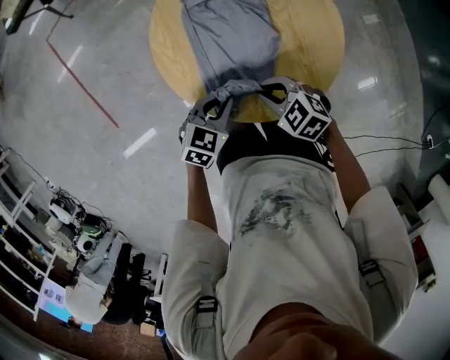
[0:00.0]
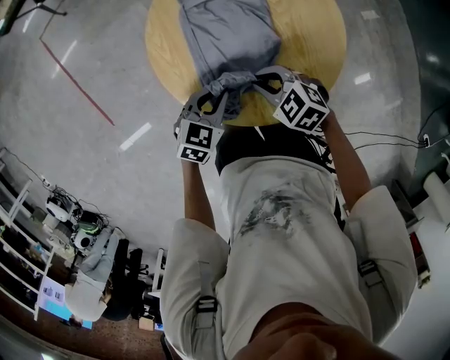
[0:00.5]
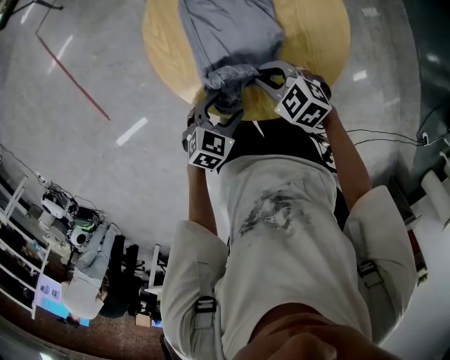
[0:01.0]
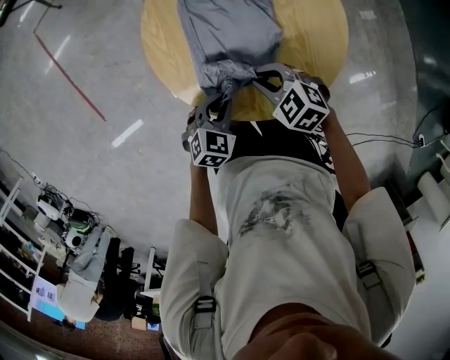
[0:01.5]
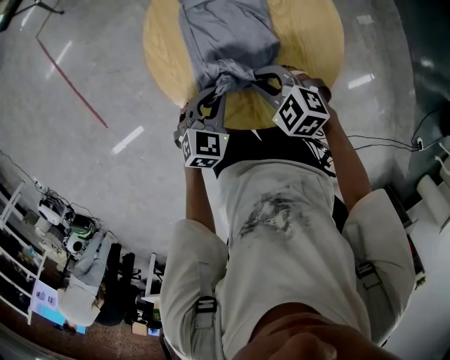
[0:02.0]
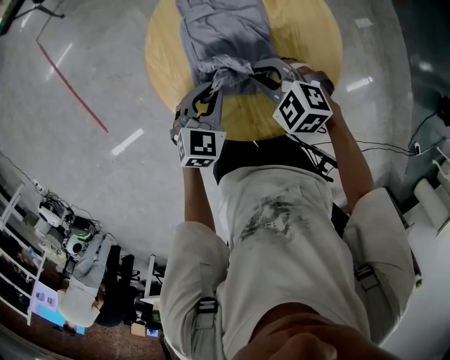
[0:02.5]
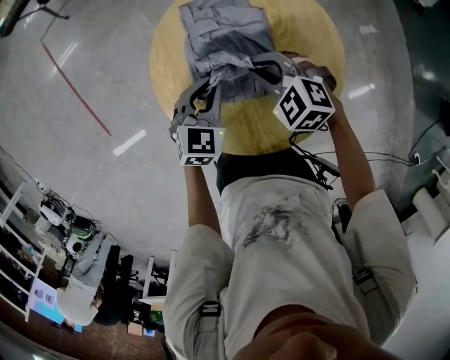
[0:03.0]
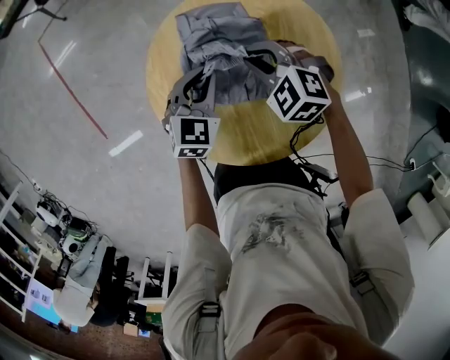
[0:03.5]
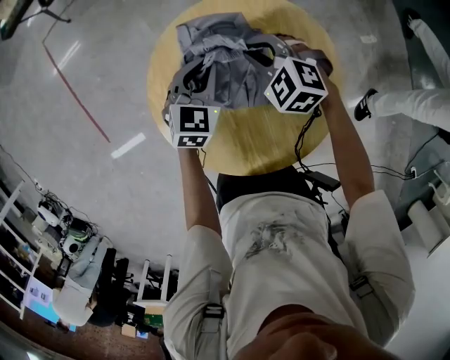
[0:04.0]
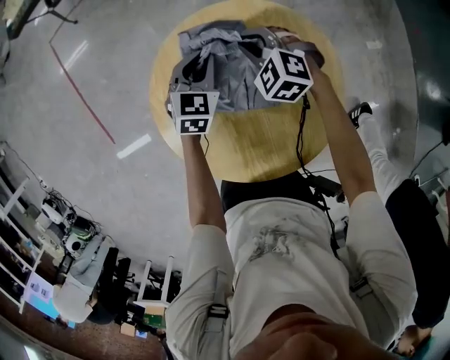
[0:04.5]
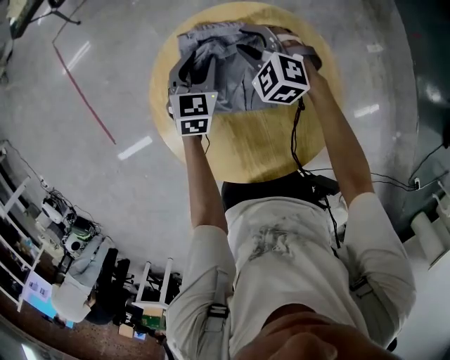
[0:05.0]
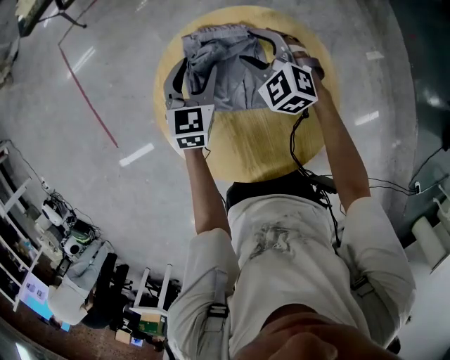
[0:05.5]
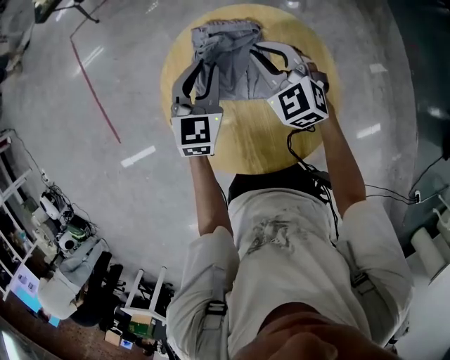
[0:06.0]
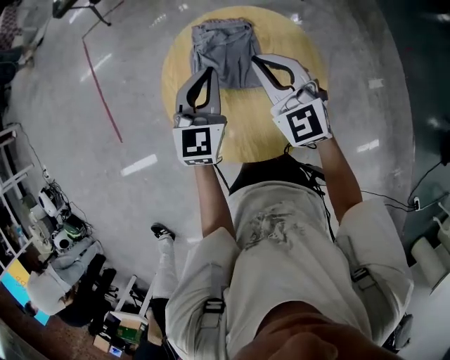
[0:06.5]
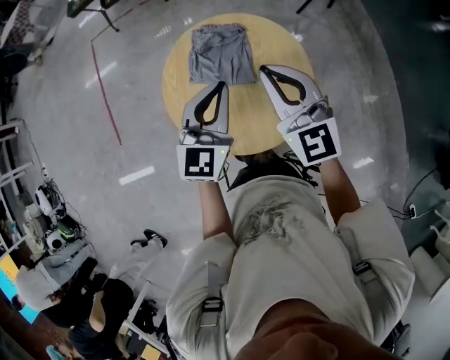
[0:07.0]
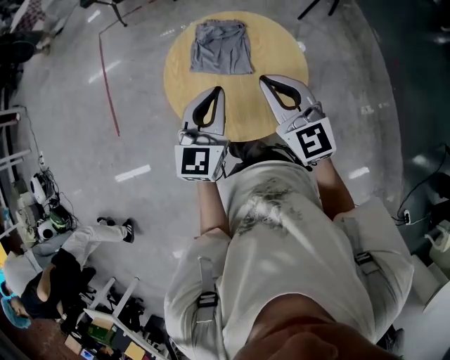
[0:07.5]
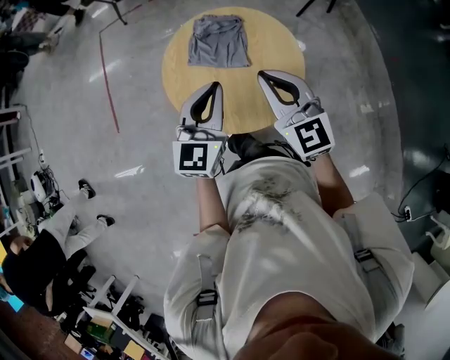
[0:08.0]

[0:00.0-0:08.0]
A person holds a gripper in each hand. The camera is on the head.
0:00.0 to 0:02.0: The left gripper opens, then closes again. The right gripper shifts by approximately 5 cm.
0:02.0 to 0:04.0: The grippers both shift forward by roughly 20 cm.
0:04.0 to 0:06.0: Both grippers travel together upward, approximately 10 cm. The left gripper opens, then closes once more. The right gripper rotates roughly 30 degrees, and opens, then closes again.
0:06.0 to 0:08.0: The grippers both shift backward and upward by about 35 cm. The left gripper closes its fingers. The right gripper changes its angle by roughly 30 degrees.

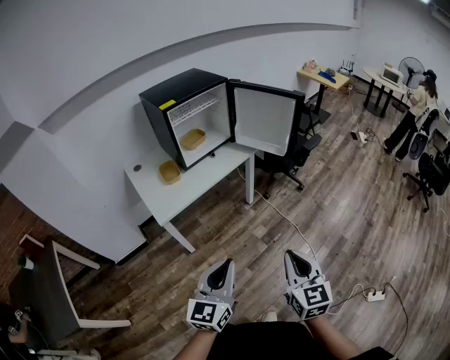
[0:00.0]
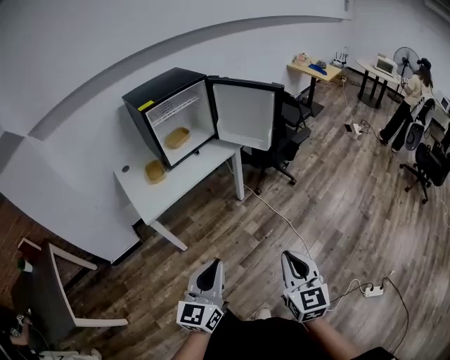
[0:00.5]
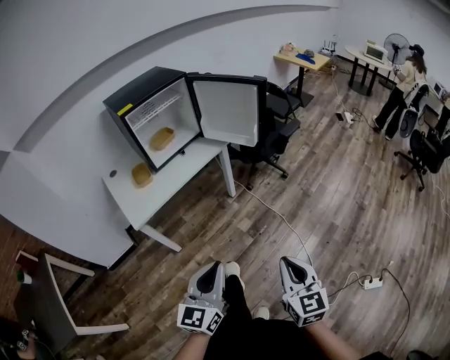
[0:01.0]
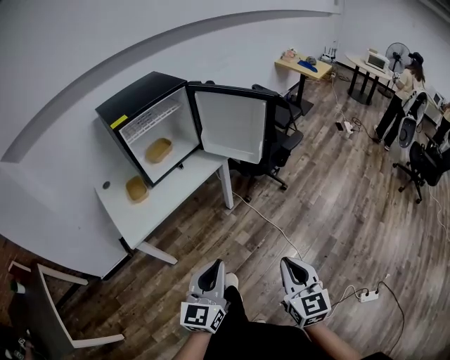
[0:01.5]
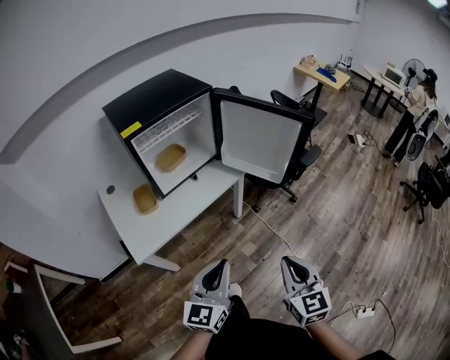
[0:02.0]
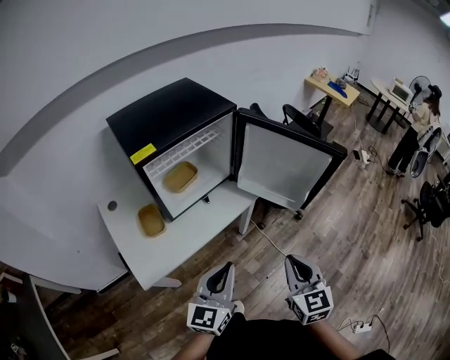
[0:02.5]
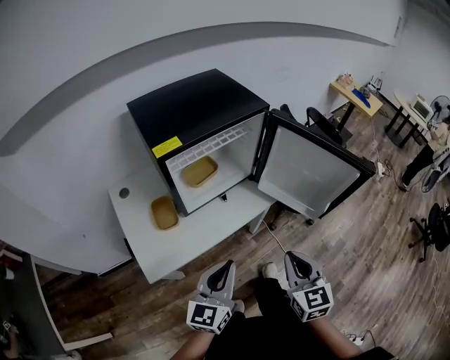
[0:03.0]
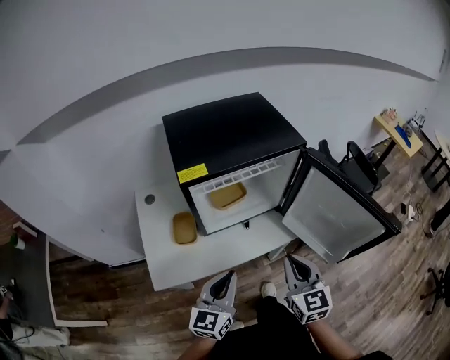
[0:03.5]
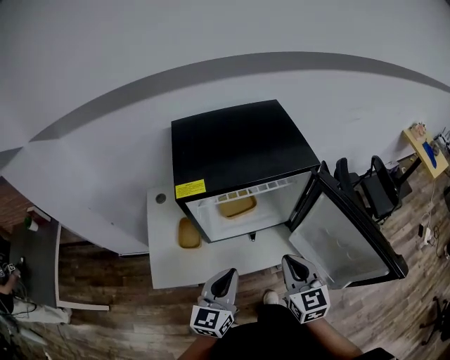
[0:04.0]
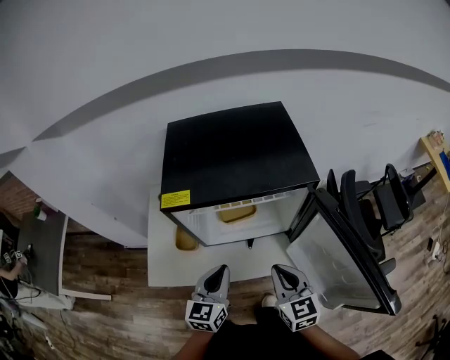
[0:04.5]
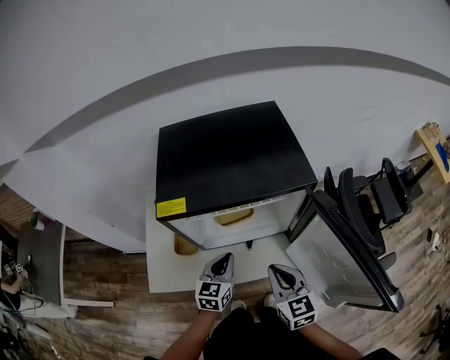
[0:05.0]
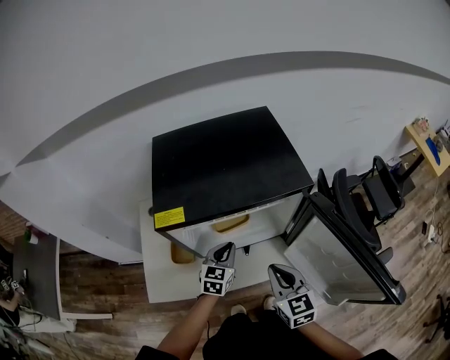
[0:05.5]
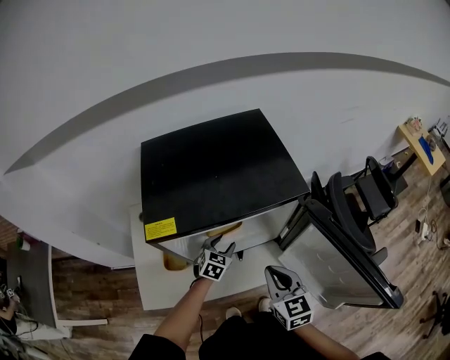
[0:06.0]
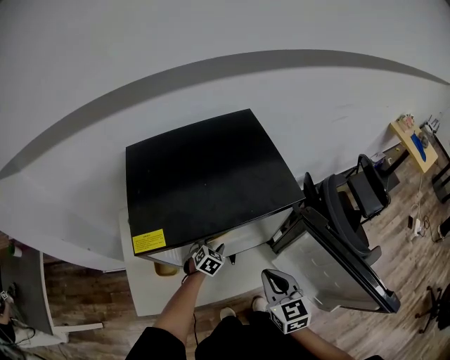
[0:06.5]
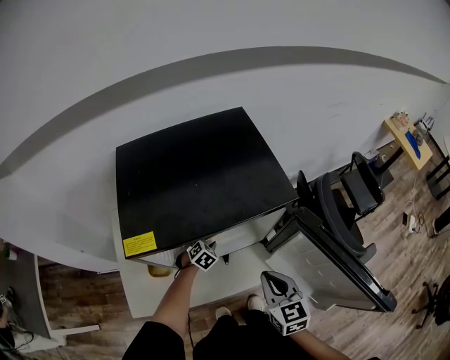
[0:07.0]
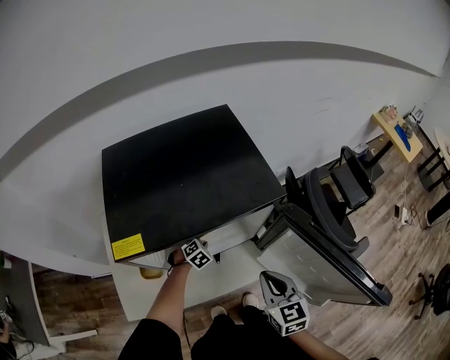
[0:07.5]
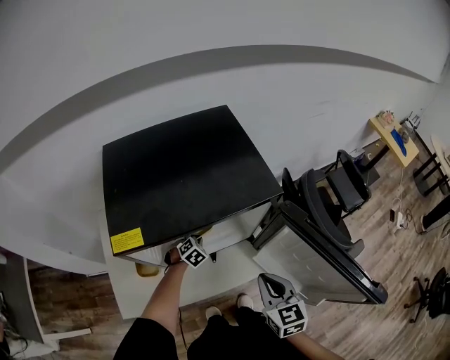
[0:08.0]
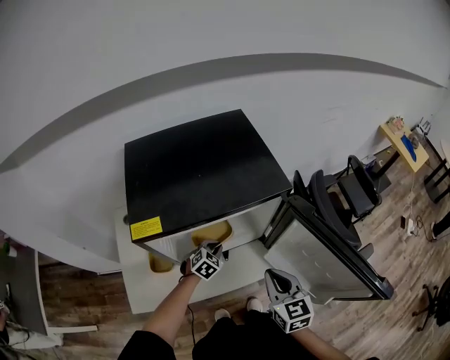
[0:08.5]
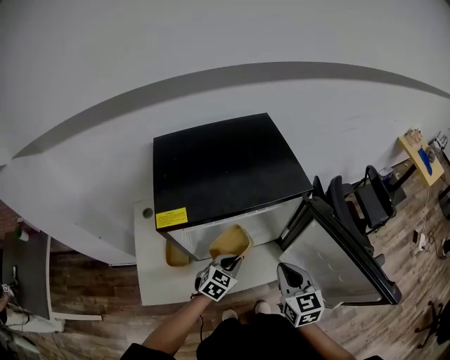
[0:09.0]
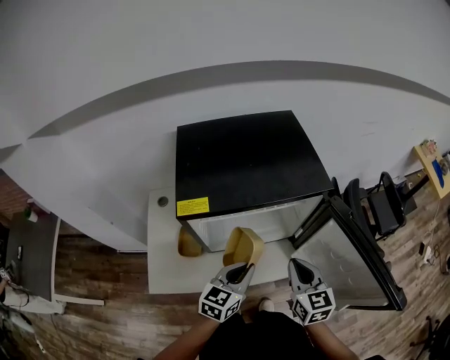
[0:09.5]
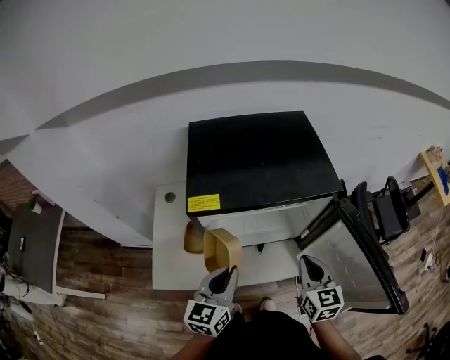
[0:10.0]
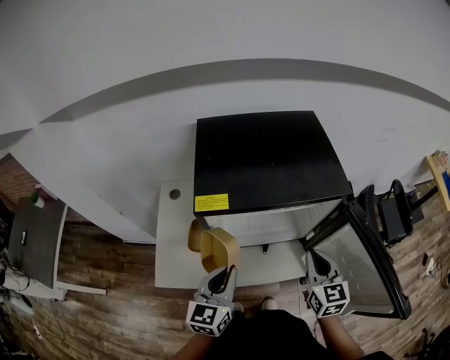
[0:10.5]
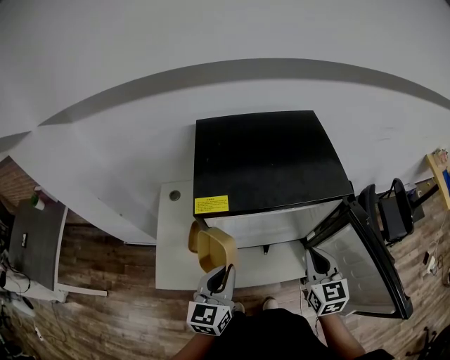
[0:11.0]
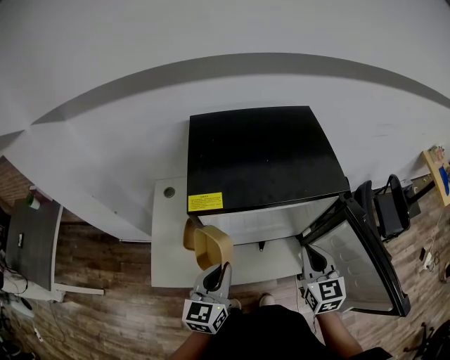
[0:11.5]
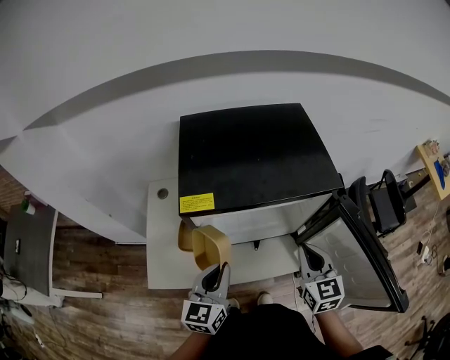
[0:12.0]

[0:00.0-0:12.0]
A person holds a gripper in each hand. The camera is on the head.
0:00.0 to 0:02.0: Both grippers move forward, about 25 cm.
0:02.0 to 0:04.0: The right gripper shifts by roughly 40 cm, and changes its angle by roughly 30 degrees. Meanwhile the left gripper moves some 35 cm, and turns by approximately 30 degrees.
0:04.0 to 0:06.0: The left gripper shifts some 30 cm forward and downward, tilts its fingers approximately 30 degrees downward, and opens up. Meanwhile the right gripper is displaced forward by roughly 10 cm.
0:06.0 to 0:08.0: The left gripper travels downward by some 10 cm, swivels roughly 30 degrees, and closes its fingers; the right gripper shifts by approximately 5 cm.
0:08.0 to 0:10.0: The right gripper ends up about 5 cm from where it was, while the left gripper heads upward and backward, covering approximately 40 cm, and tips its fingers upward by about 50 degrees.
0:10.0 to 0:12.0: The grippers make only small movements.

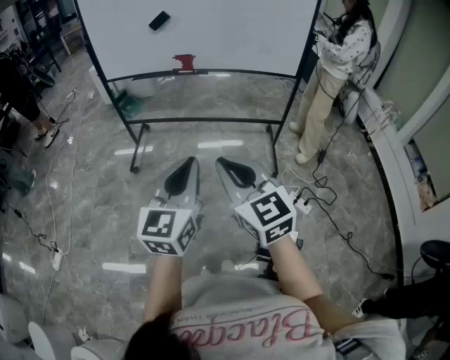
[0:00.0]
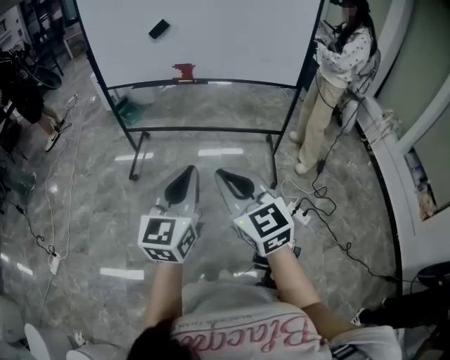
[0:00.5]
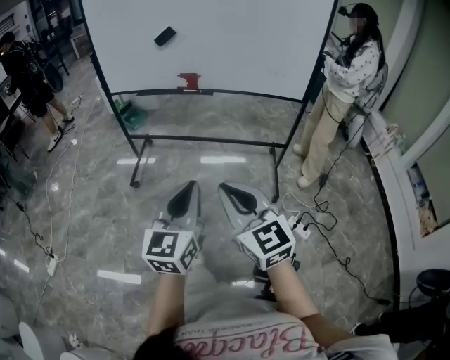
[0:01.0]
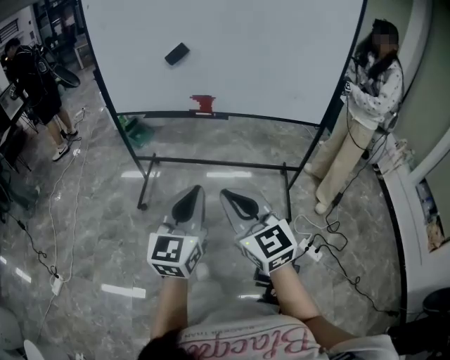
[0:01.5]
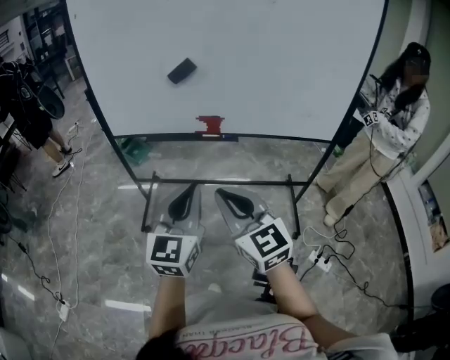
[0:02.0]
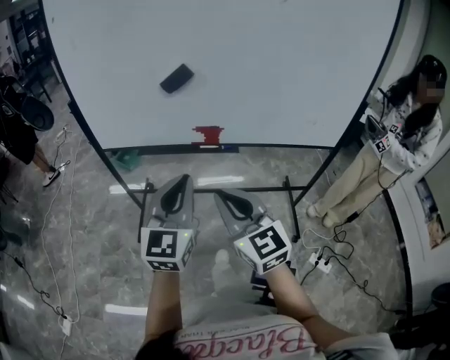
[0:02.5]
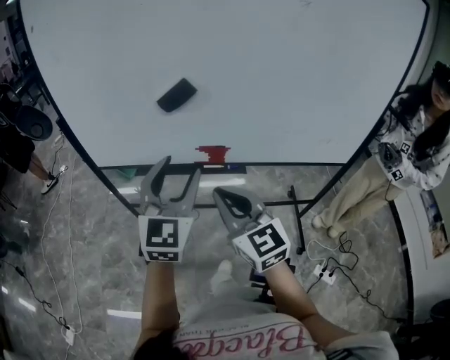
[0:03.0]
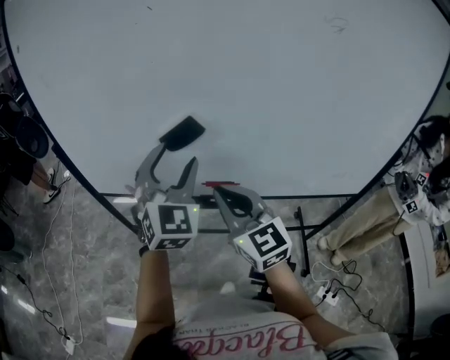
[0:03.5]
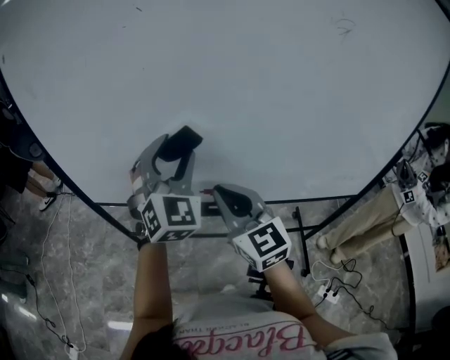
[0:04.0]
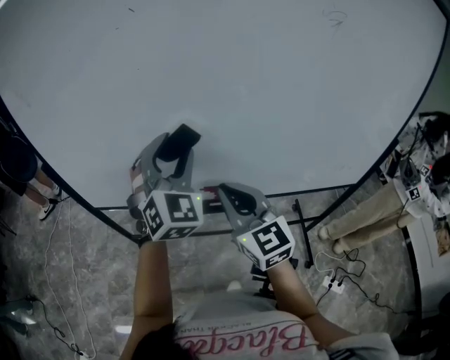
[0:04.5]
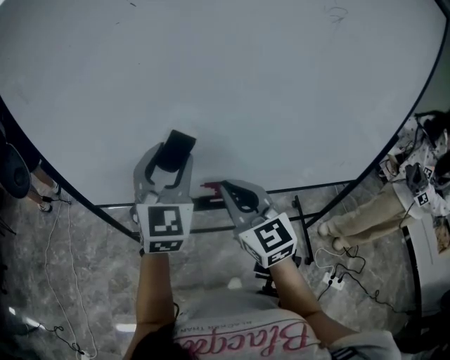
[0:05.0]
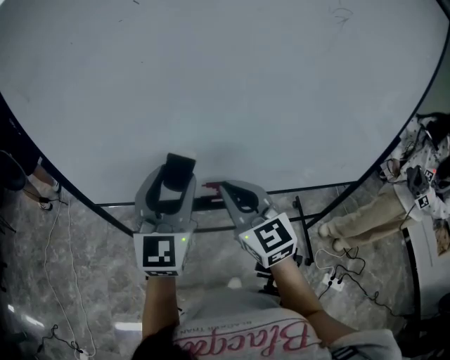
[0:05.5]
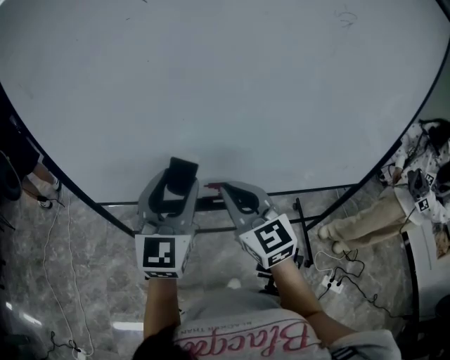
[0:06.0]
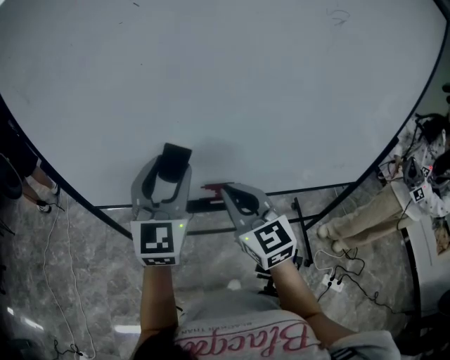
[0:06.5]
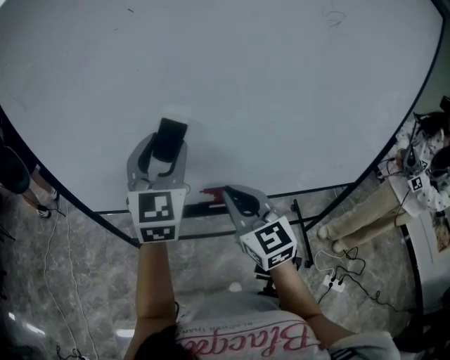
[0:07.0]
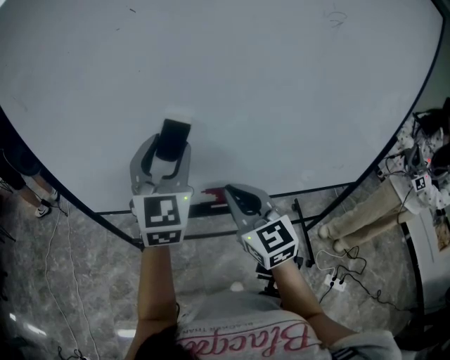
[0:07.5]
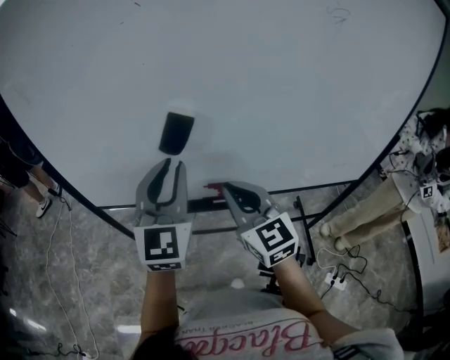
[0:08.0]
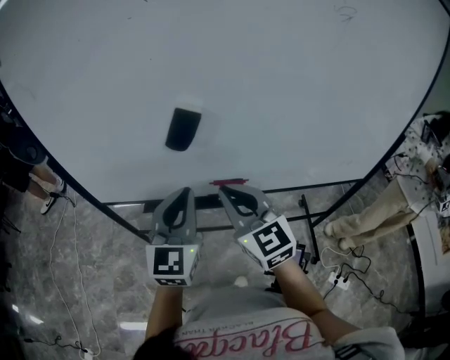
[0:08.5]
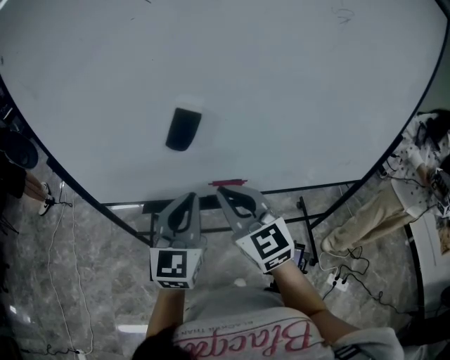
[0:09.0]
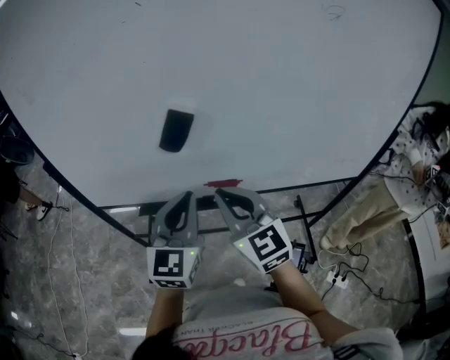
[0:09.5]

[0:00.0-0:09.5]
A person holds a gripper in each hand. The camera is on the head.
0:00.0 to 0:02.0: Both grippers move forward, roughly 25 cm.
0:02.0 to 0:04.0: The two grippers go approximately 35 cm forward. The left gripper rolls clockwise, seen from behind, by about 40 degrees, and opens.
0:04.0 to 0:05.5: The left gripper travels backward by roughly 5 cm, and turns by some 30 degrees.
0:05.5 to 0:07.5: The left gripper heads forward, covering some 5 cm.
0:07.5 to 0:09.5: The left gripper is displaced downward and backward by approximately 15 cm, and closes its fingers.
